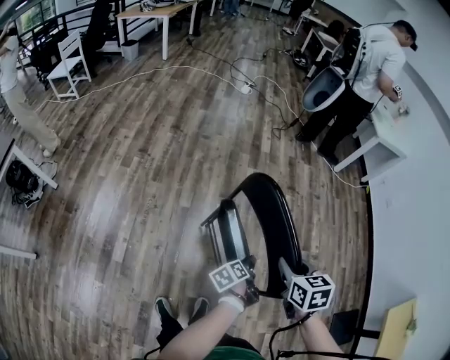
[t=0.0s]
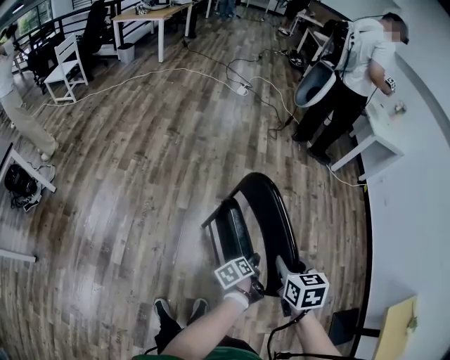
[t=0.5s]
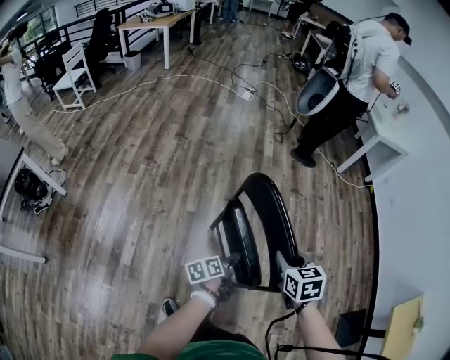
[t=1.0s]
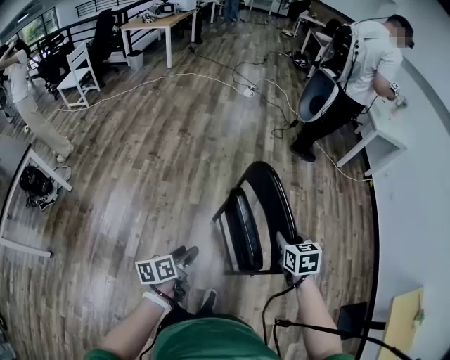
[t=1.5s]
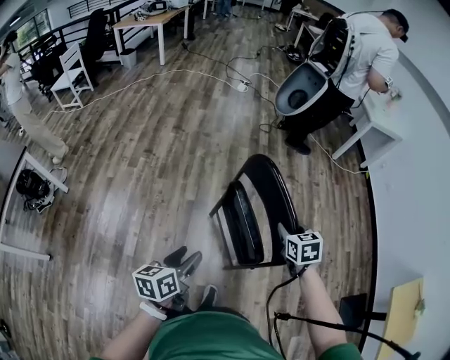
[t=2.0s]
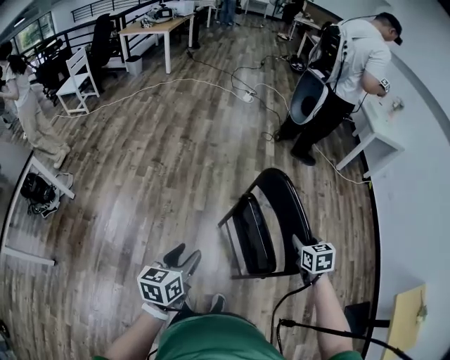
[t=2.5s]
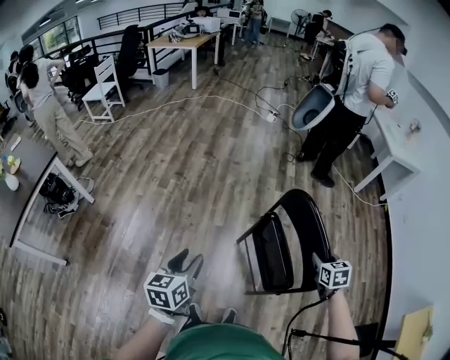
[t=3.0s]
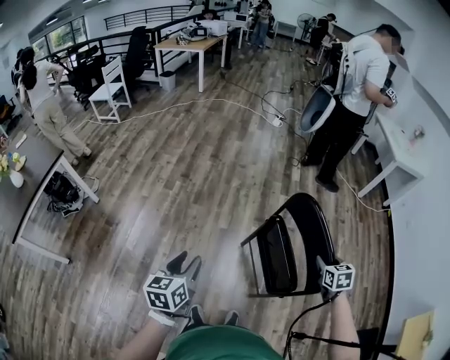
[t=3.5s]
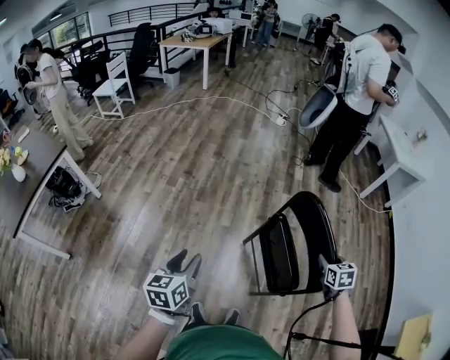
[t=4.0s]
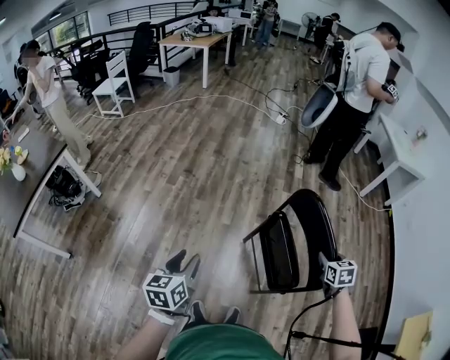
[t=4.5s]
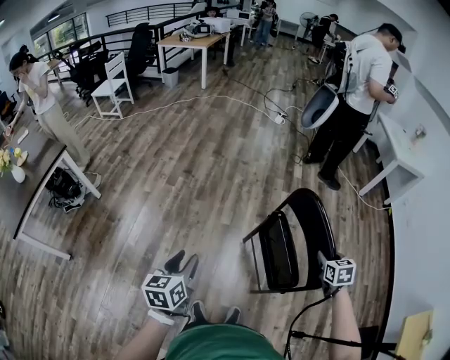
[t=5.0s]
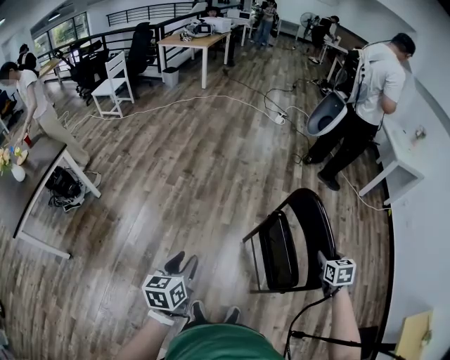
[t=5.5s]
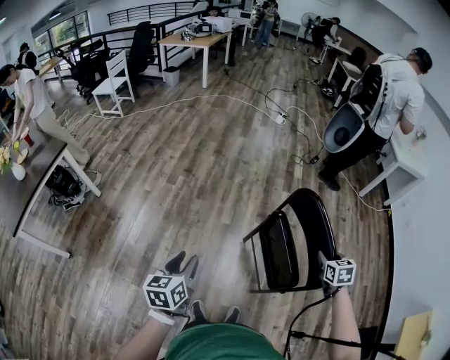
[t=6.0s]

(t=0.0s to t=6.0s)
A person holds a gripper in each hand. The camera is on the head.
t=0.0s - t=2.0s: The left gripper moves upward, to the left and backward, about 30 cm, and rotates about 40 degrees.
t=2.0s - t=4.0s: The left gripper heads to the left, covering about 20 cm, and turns by about 20 degrees.
t=4.0s - t=6.0s: The grippers make only small movements.

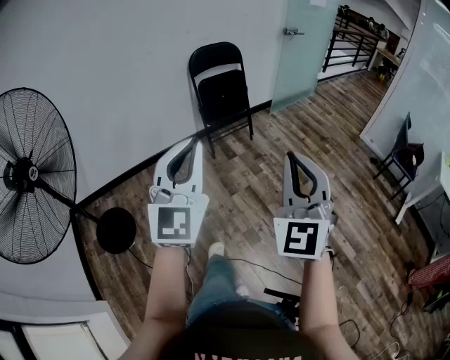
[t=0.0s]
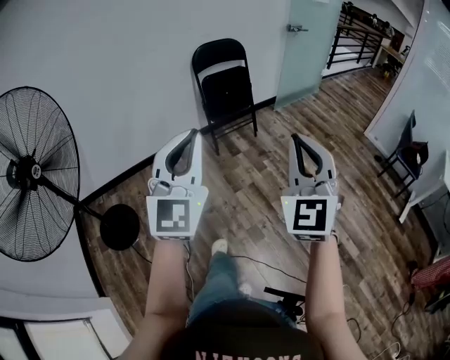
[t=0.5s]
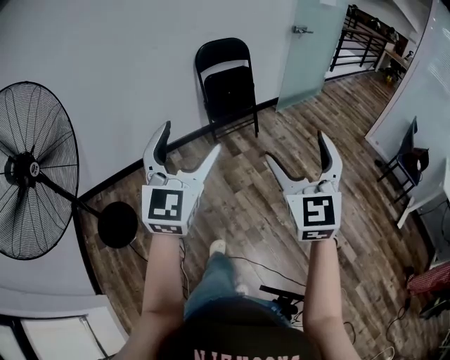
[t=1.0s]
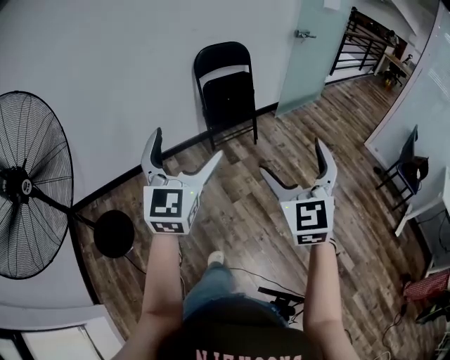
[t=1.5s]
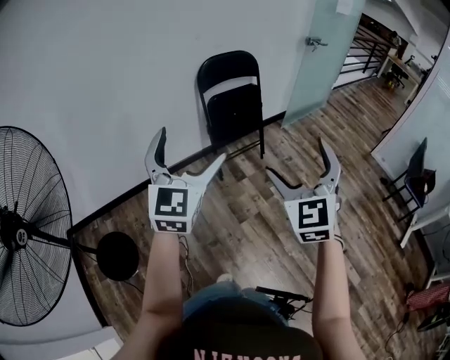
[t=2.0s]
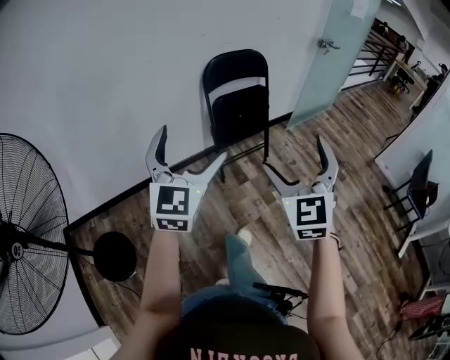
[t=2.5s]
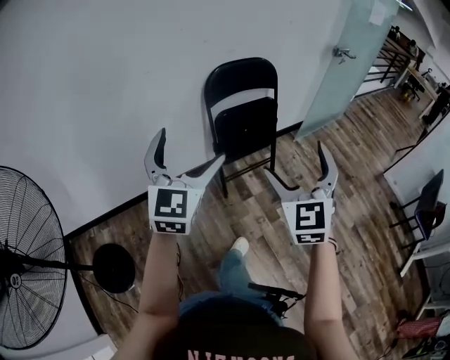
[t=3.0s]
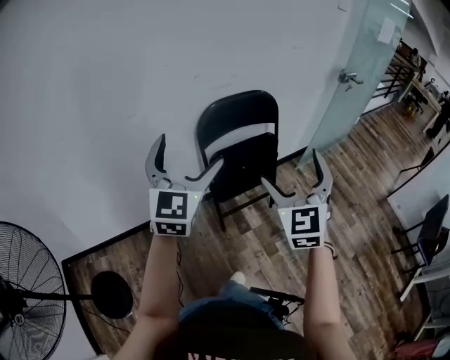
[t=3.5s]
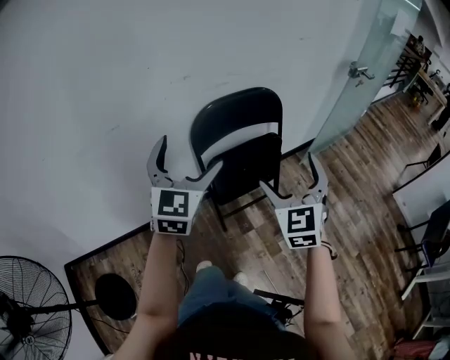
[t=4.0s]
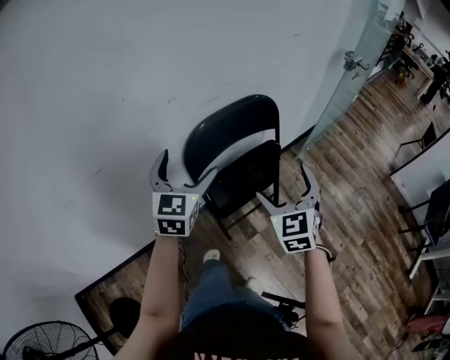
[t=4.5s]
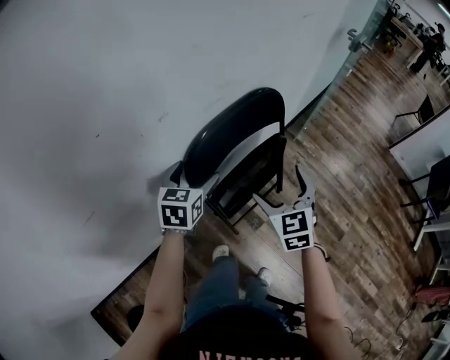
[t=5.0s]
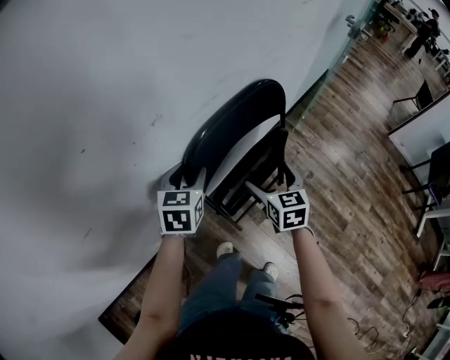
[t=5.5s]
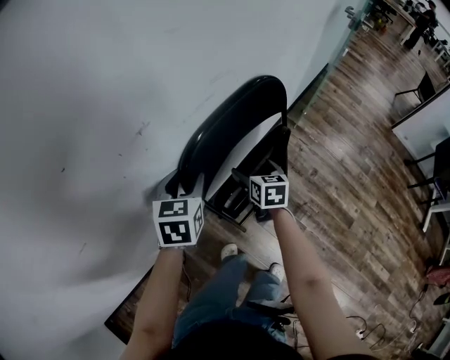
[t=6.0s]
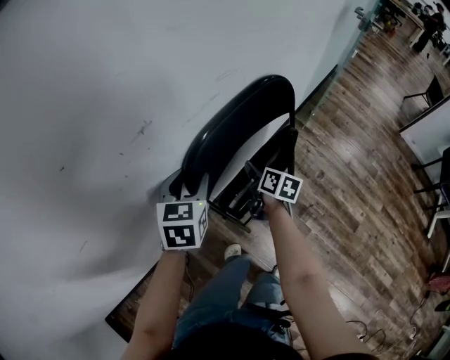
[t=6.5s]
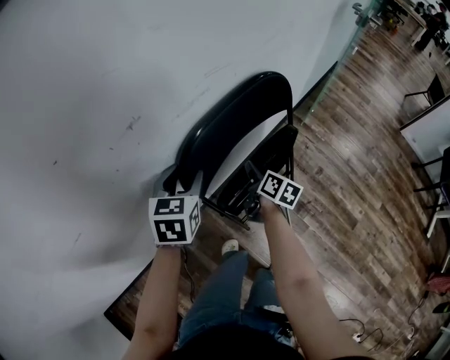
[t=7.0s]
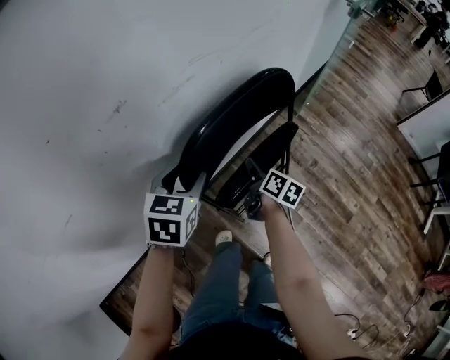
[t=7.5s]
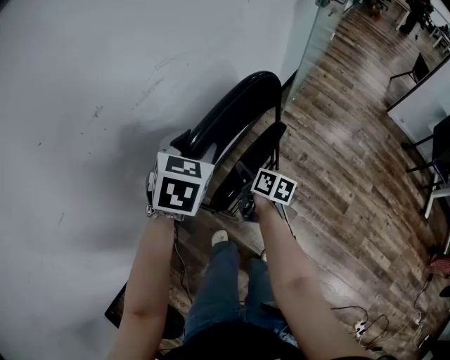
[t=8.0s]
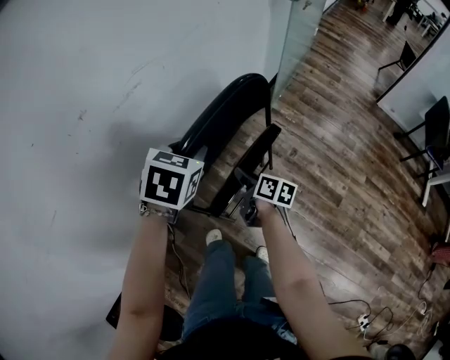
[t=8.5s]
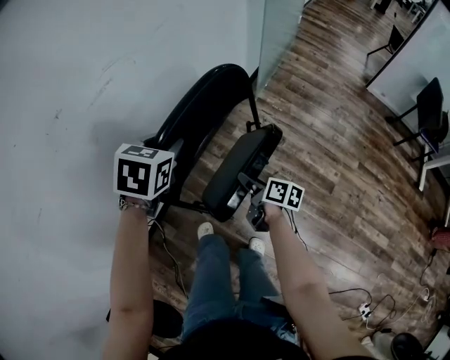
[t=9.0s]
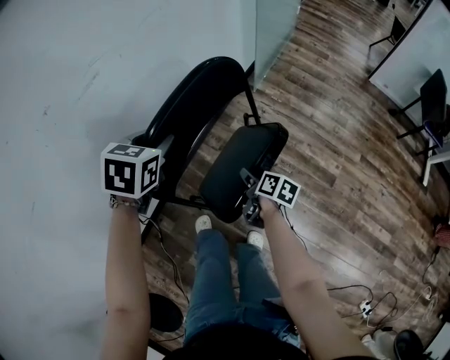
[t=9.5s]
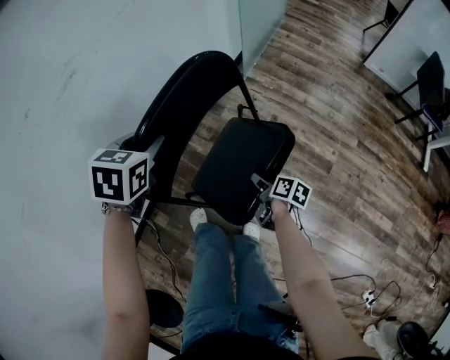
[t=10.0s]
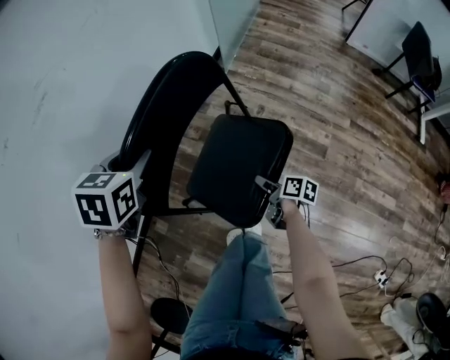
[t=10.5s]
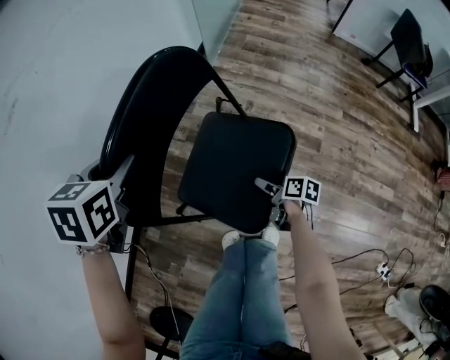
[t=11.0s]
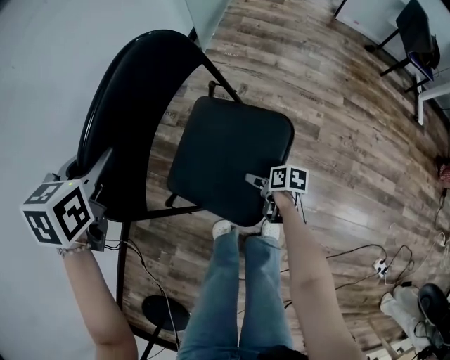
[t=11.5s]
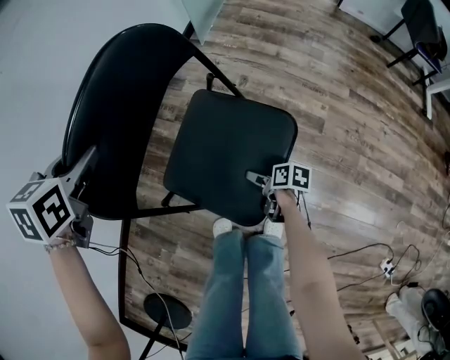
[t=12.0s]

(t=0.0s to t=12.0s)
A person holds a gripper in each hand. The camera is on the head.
t=0.0s - t=2.0s: Both grippers travel together forward, approximately 30 cm. The left gripper opens, while the right gripper opens up.
t=2.0s - t=4.0s: The two grippers travel together, forward, approximately 50 cm.
t=4.0s - t=6.0s: The left gripper is displaced forward and downward by about 30 cm, angles its fingers downward, by about 30 degrees, and closes its fingers. Meanwhile the right gripper travels downward and forward by some 40 cm, and rotates around the line of its fingers by about 50 degrees, clockwise from behind.
t=6.0s - t=8.0s: The right gripper travels backward and to the right by roughly 10 cm, rotates some 40 degrees, and closes its fingers. The left gripper moves to the right and upward, approximately 15 cm, and changes its angle by about 20 degrees.
t=8.0s - t=10.0s: The left gripper heads to the right, backward and downward, covering about 15 cm; the right gripper moves to the right, backward and downward, approximately 35 cm, and changes its angle by some 20 degrees.
t=10.0s - t=12.0s: The right gripper goes approximately 25 cm downward, backward and to the right, and opens; the left gripper is displaced downward by approximately 10 cm.

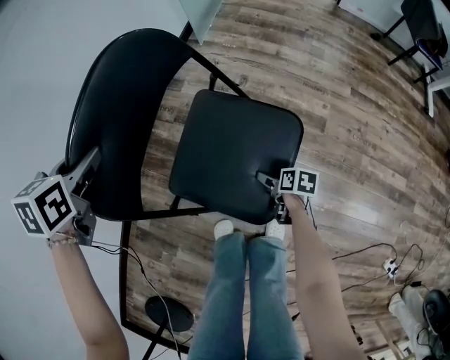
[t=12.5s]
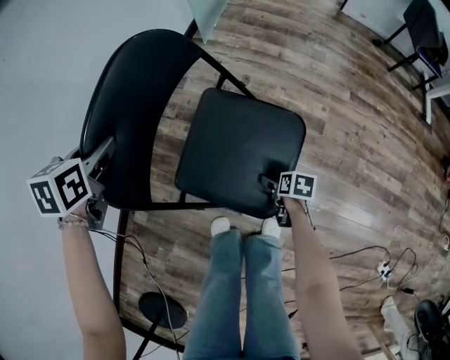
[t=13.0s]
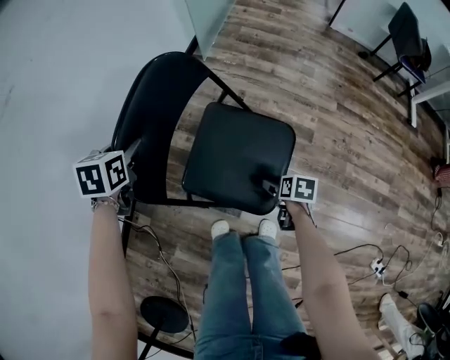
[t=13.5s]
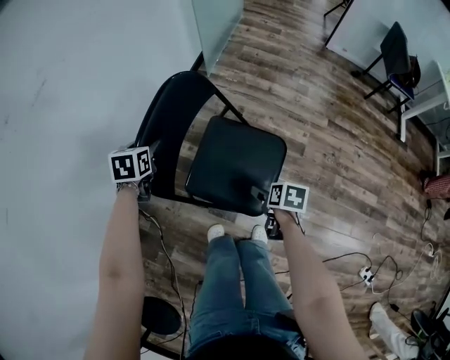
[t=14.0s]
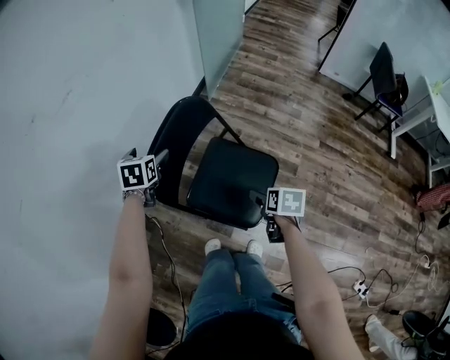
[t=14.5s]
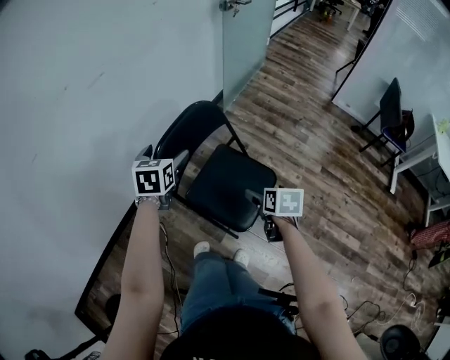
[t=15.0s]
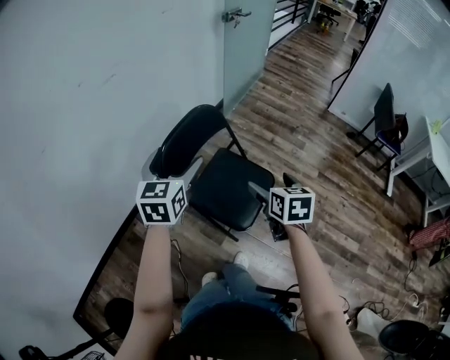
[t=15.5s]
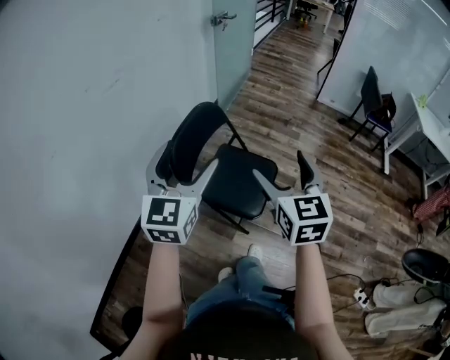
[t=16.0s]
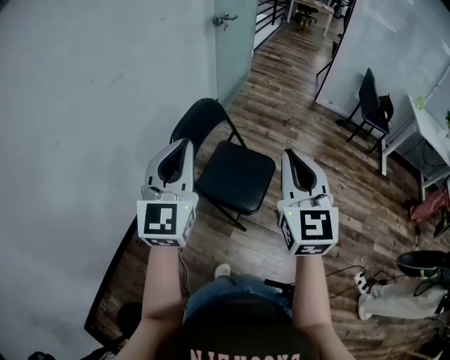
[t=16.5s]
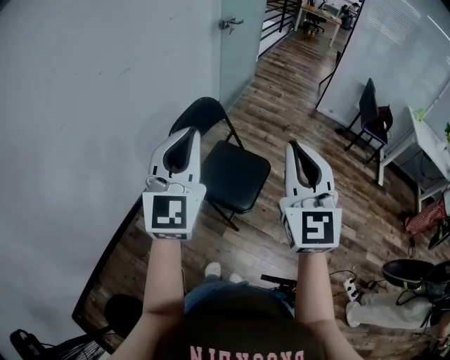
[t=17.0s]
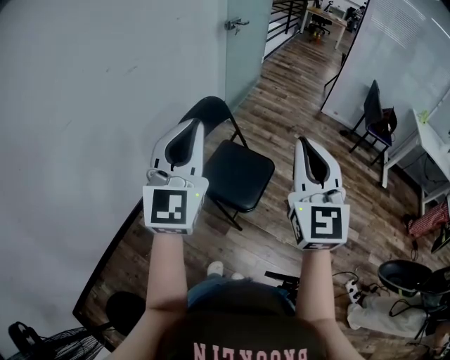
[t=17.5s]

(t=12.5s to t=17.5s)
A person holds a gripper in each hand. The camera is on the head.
t=12.5s - t=15.0s: The left gripper moves upward and backward, some 20 cm, changes its angle by some 20 degrees, and opens its fingers, while the right gripper moves upward, some 40 cm, and turns by roughly 30 degrees.
t=15.0s - t=17.5s: The left gripper heads backward and upward, covering some 40 cm, angles its fingers upward, by approximately 50 degrees, and closes its fingers; the right gripper is displaced upward and backward by approximately 50 cm, points its fingers some 60 degrees further upward, and closes up.

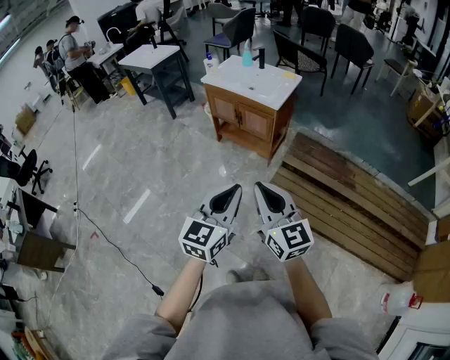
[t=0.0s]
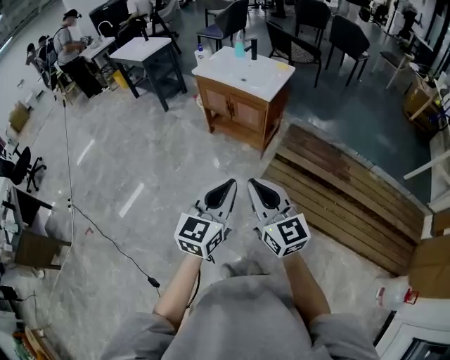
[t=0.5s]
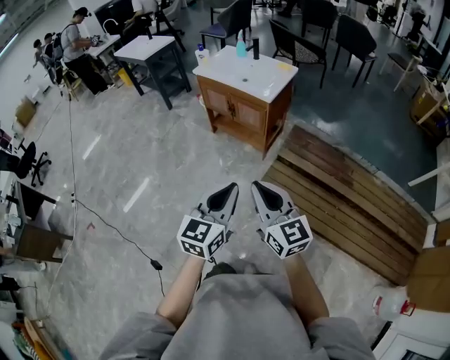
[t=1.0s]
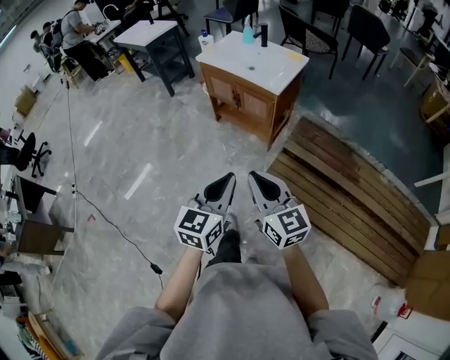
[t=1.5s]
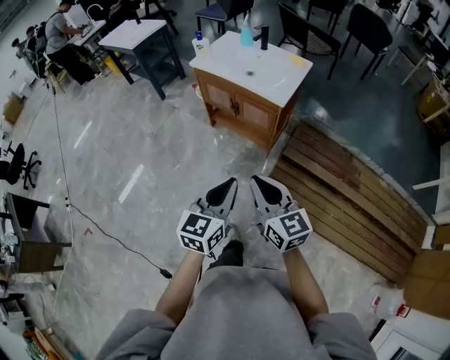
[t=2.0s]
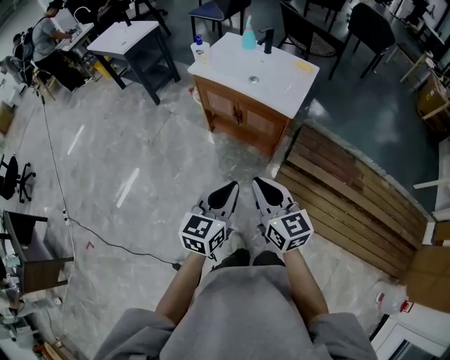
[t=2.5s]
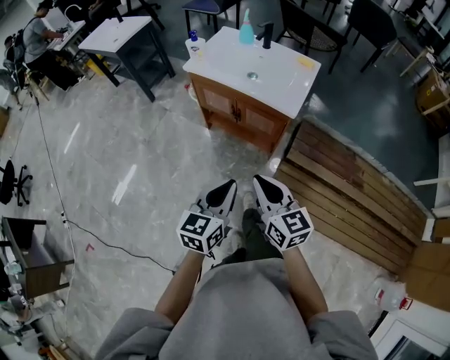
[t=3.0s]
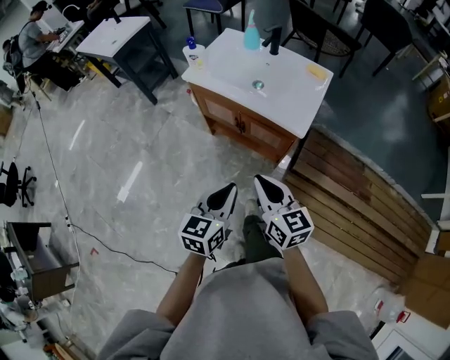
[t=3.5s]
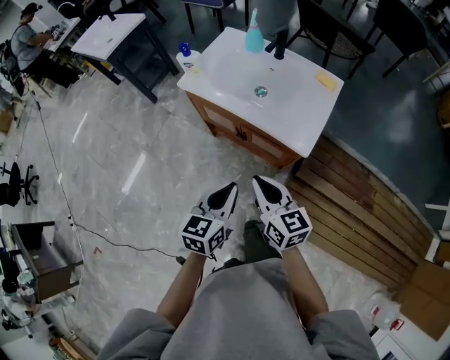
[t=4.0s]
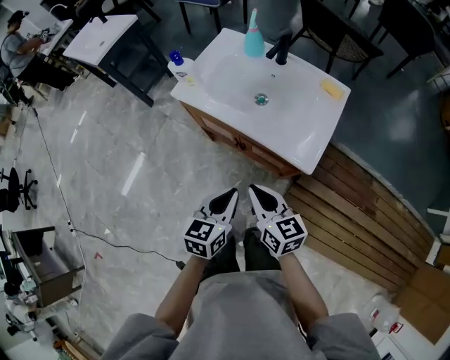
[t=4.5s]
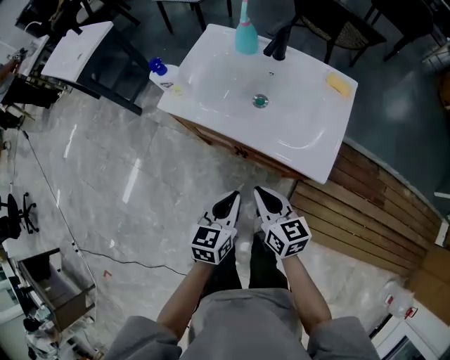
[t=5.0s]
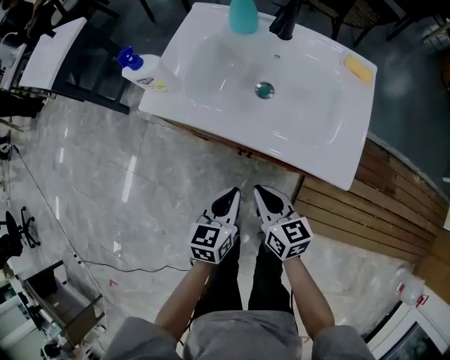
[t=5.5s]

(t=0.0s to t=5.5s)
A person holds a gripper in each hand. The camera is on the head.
t=0.0s - t=2.0s: Both grippers move forward, approximately 20 cm.
t=2.0s - t=3.5s: The two grippers go some 25 cm forward.
t=3.5s - t=5.5s: The left gripper is displaced forward and downward by roughly 35 cm. Meanwhile the right gripper heads downward and forward, covering approximately 35 cm.
